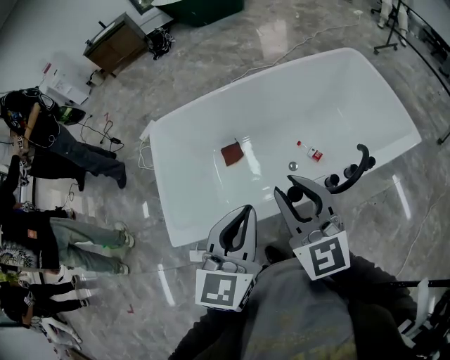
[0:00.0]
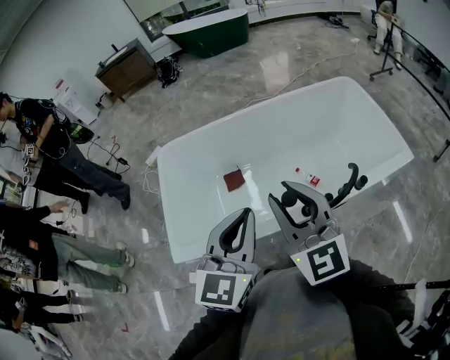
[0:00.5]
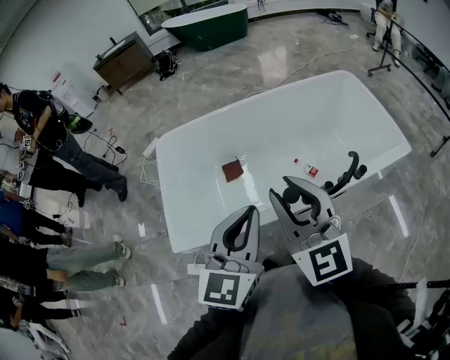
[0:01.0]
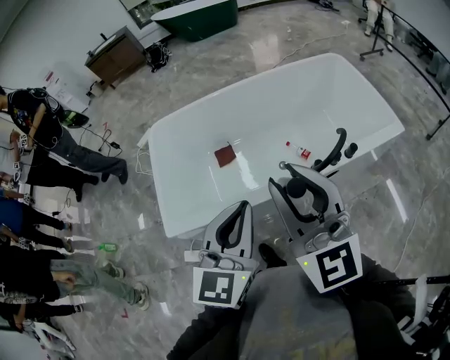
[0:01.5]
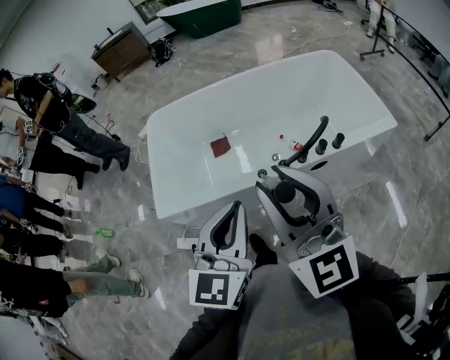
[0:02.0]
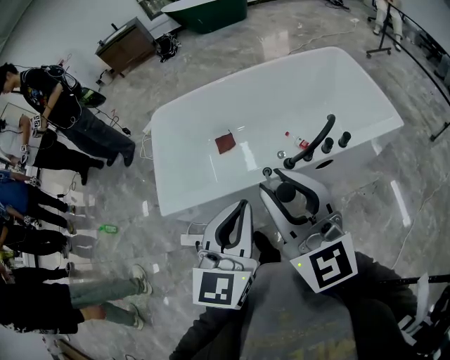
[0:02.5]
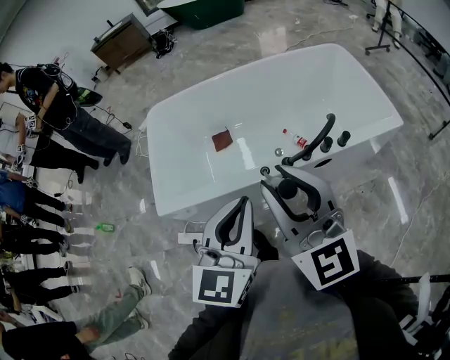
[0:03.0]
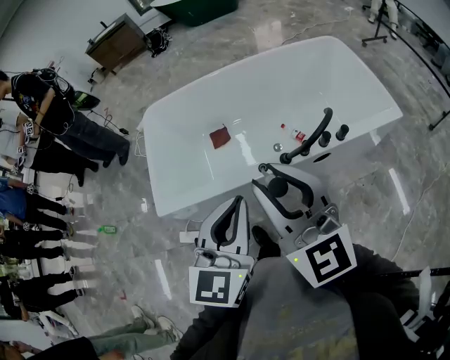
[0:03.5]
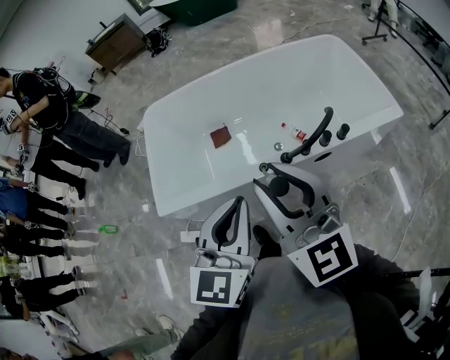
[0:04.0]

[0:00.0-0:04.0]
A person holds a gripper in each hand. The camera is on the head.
0:00.0 to 0:02.0: The right gripper goes about 25 cm backward and upward; the left gripper heads backward, covering approximately 20 cm.
0:02.0 to 0:04.0: The right gripper travels downward by approximately 5 cm.

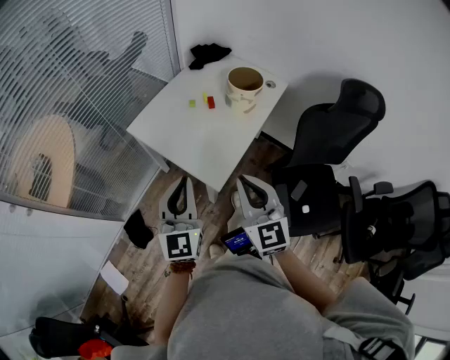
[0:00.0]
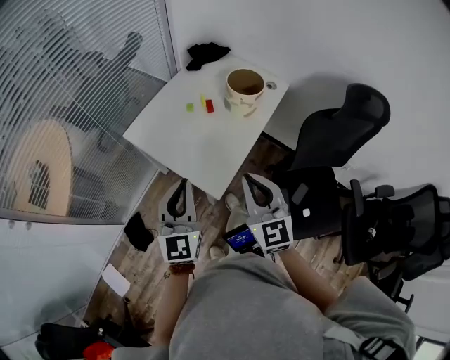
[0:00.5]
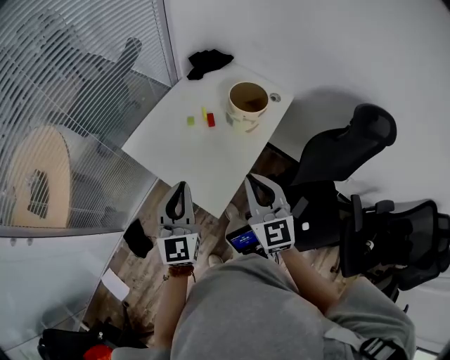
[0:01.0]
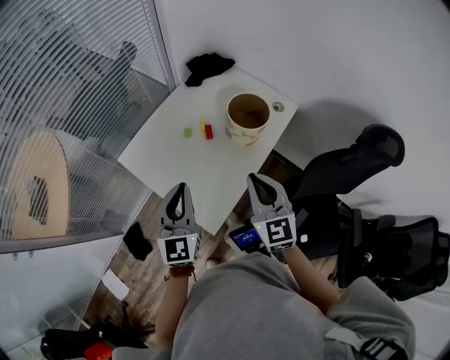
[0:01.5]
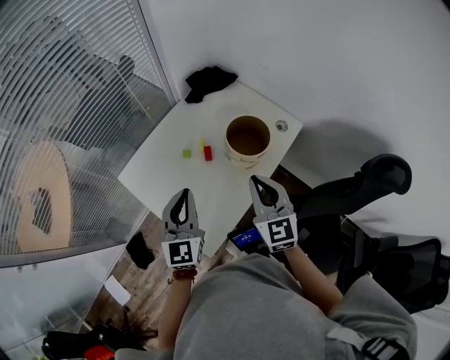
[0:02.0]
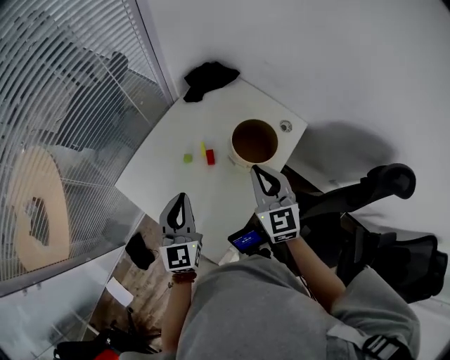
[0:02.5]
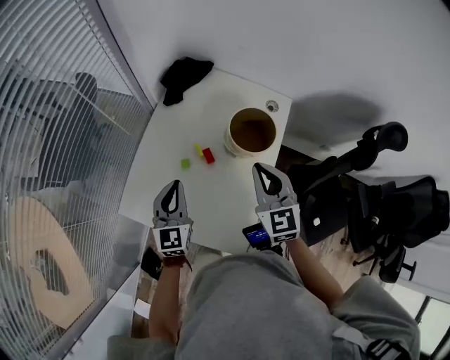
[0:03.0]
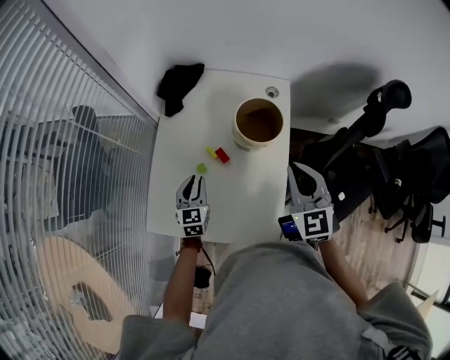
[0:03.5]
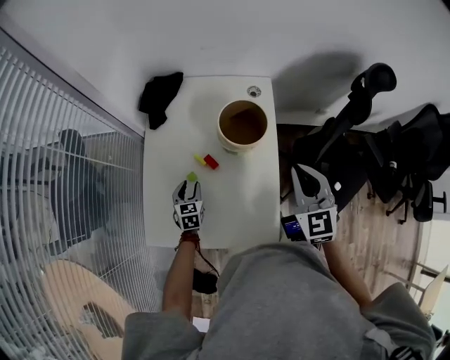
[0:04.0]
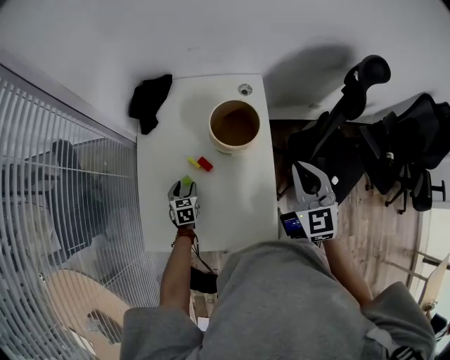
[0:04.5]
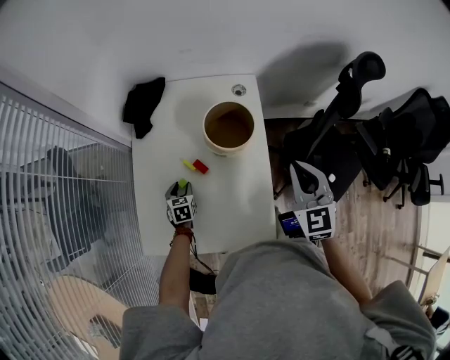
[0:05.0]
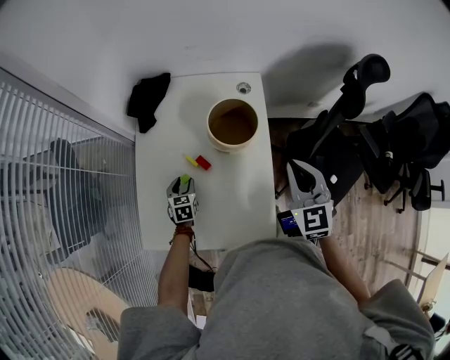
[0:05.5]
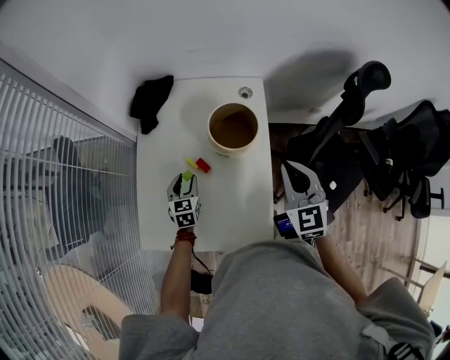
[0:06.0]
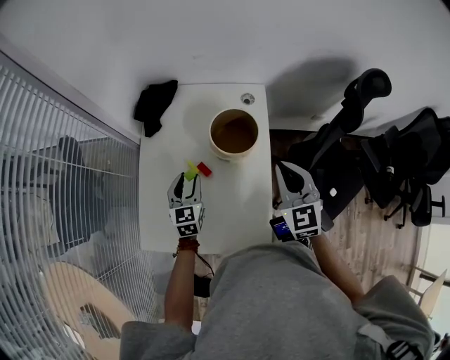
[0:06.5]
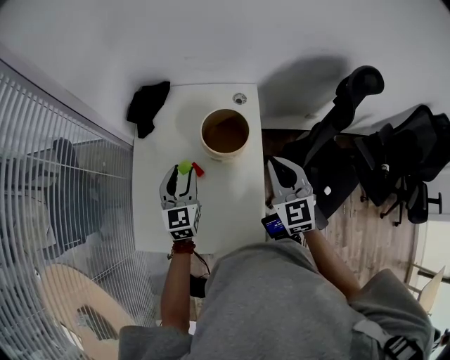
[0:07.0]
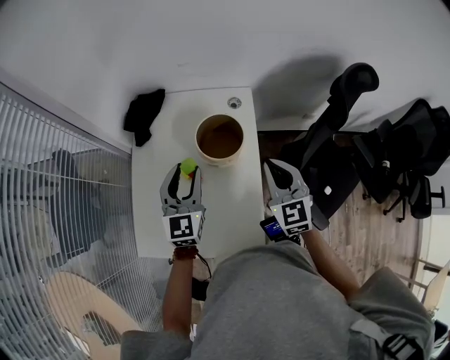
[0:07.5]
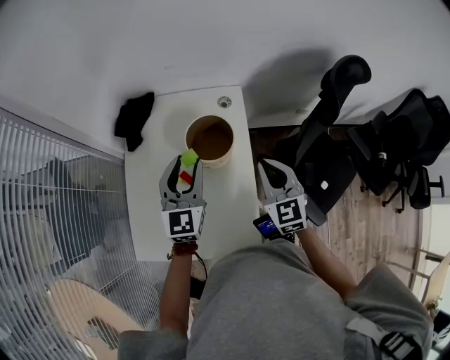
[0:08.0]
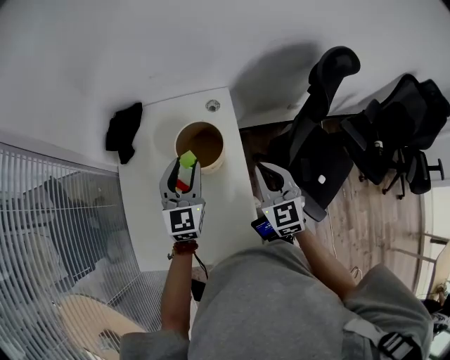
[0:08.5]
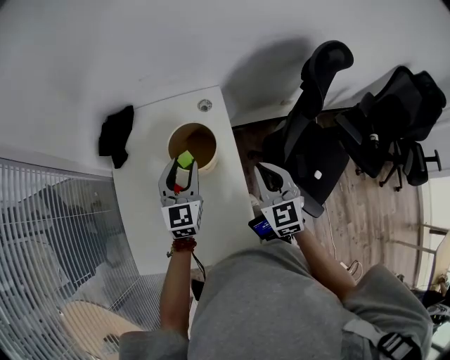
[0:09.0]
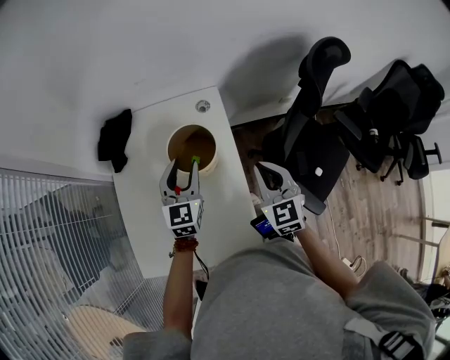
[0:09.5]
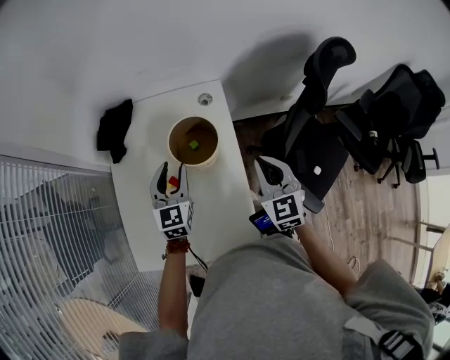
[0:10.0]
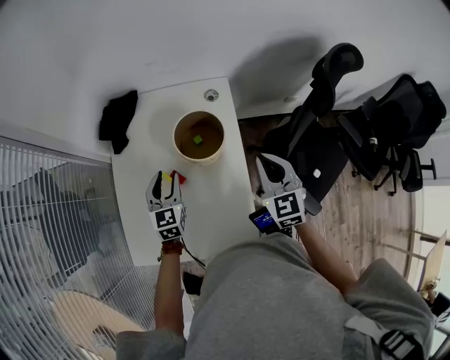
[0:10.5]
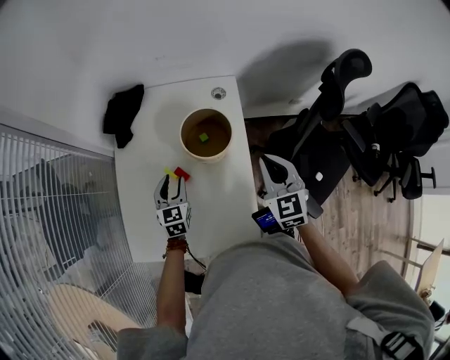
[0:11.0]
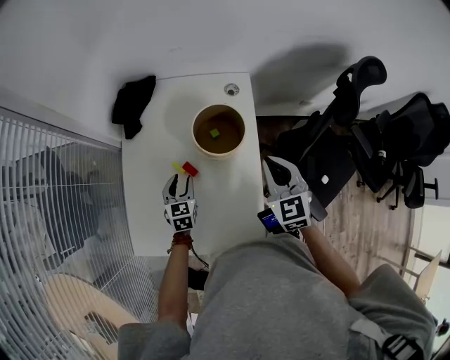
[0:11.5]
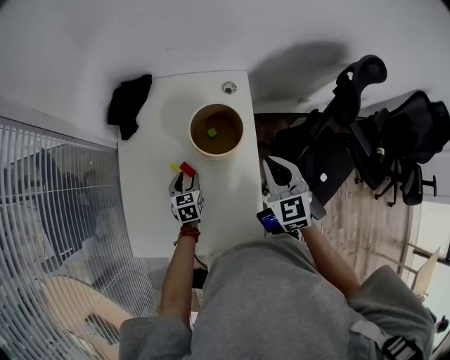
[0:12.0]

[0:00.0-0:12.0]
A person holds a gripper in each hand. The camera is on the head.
0:00.0 to 0:02.0: The left gripper shifts approximately 30 cm forward. Meanwhile the right gripper heads forward and to the right, covering approximately 35 cm.
0:02.0 to 0:04.0: The left gripper moves downward, about 30 cm, angles its fingers downward, by some 40 degrees, and opens up; the right gripper turns by some 40 degrees.
0:04.0 to 0:06.0: The left gripper shifts by roughly 5 cm.
0:06.0 to 0:08.0: The left gripper shifts some 30 cm upward and to the right, and swivels some 30 degrees.
0:08.0 to 0:10.0: The left gripper shifts about 10 cm downward.
0:10.0 to 0:12.0: The right gripper changes place by about 5 cm; the left gripper shifts about 20 cm downward, and turns by some 30 degrees.

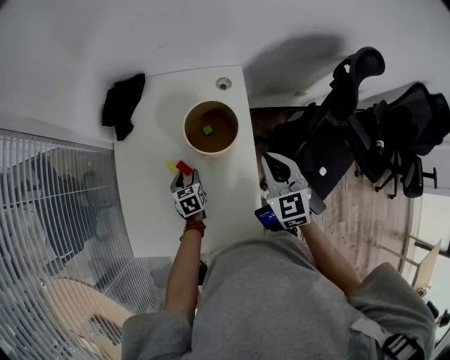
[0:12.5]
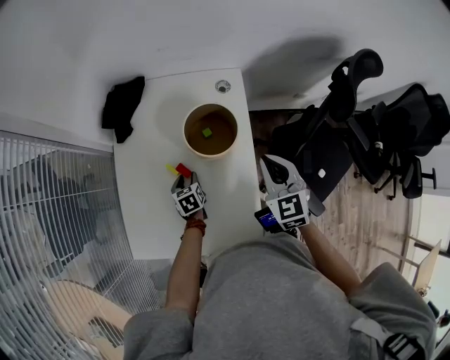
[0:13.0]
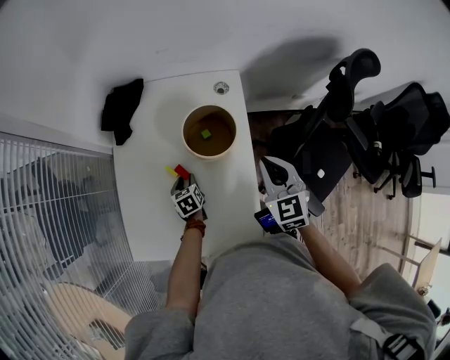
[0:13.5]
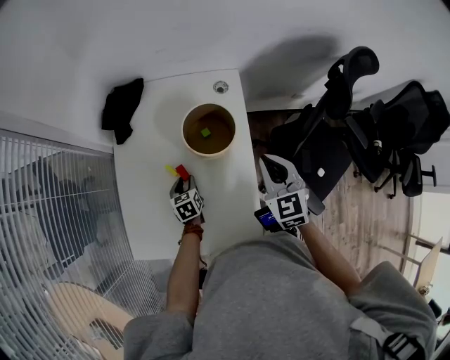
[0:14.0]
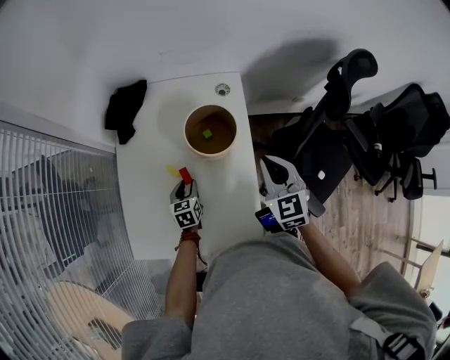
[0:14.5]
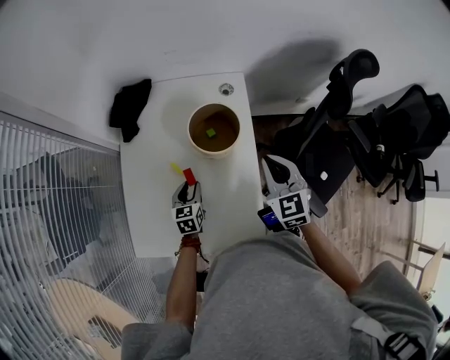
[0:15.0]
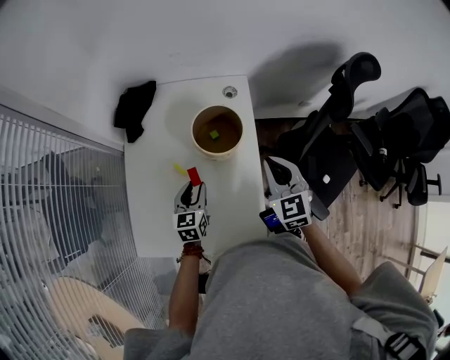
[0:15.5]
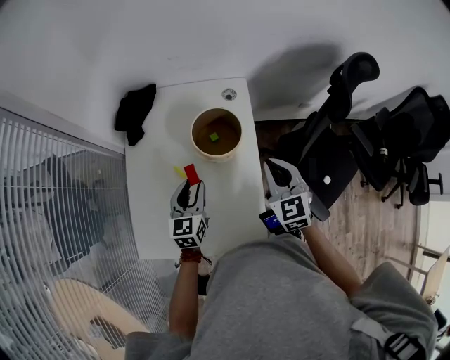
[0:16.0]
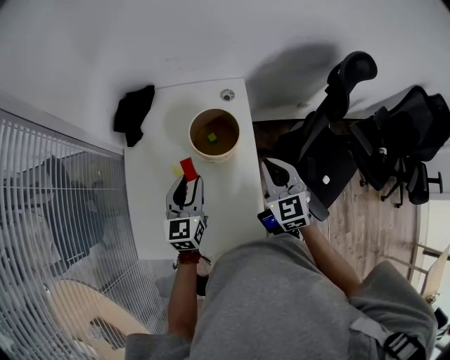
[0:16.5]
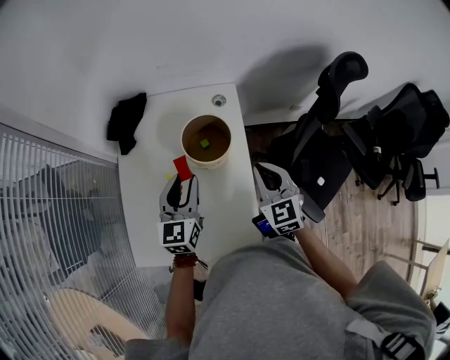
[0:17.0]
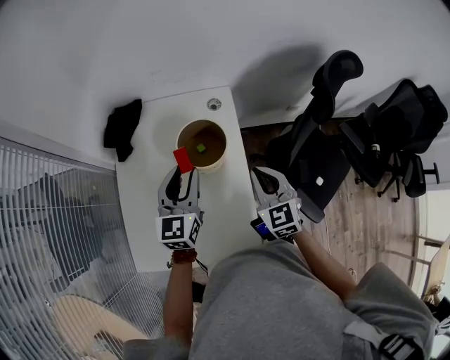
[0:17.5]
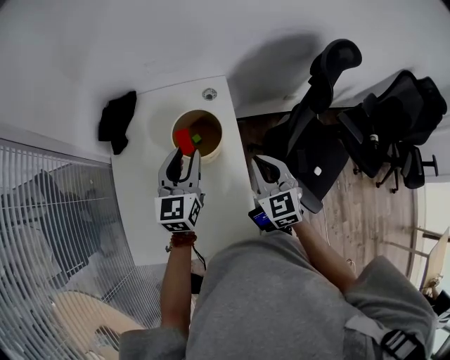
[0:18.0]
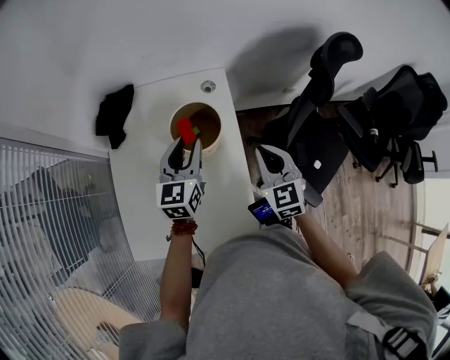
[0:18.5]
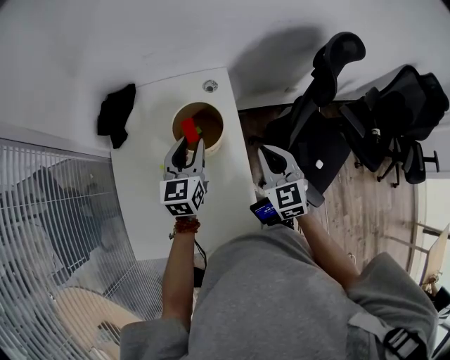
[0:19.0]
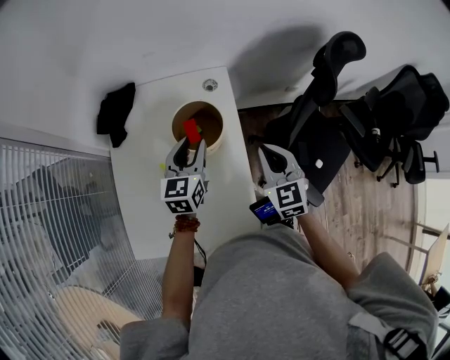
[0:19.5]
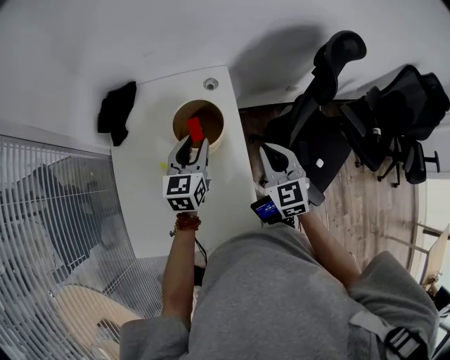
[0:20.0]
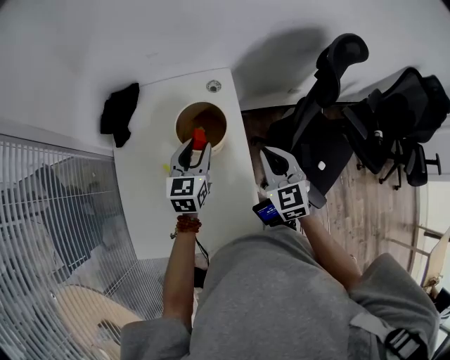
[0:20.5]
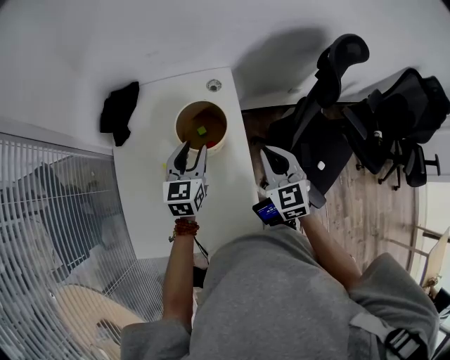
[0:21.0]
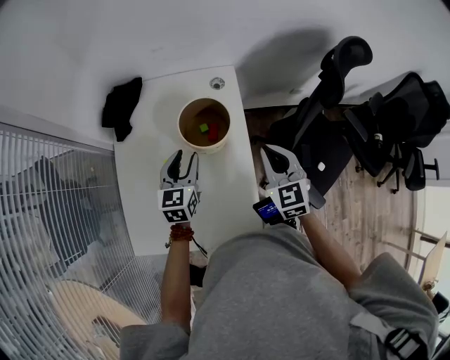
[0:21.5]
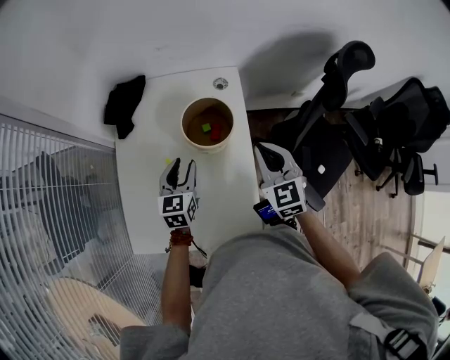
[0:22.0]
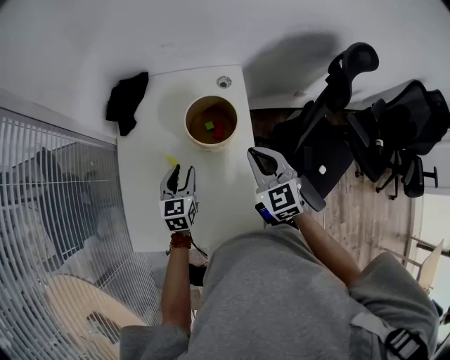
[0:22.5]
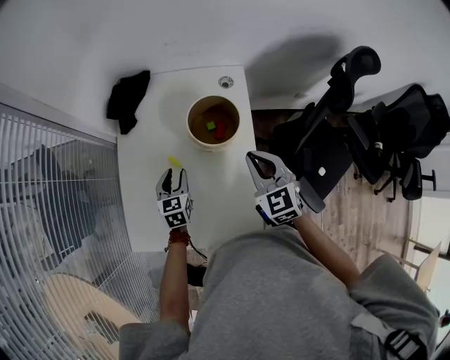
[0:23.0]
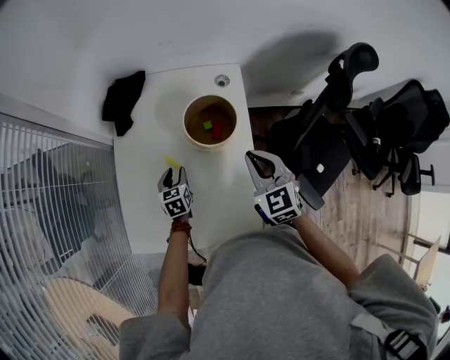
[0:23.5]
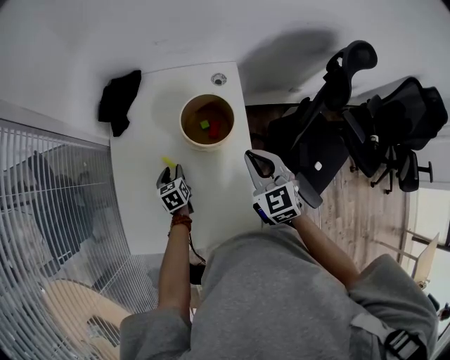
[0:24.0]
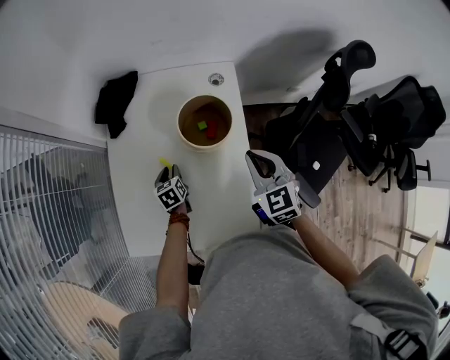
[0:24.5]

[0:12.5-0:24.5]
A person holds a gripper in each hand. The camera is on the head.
0:12.5 to 0:14.5: There are only small adjustments of the grippers.
0:14.5 to 0:16.5: The left gripper heads upward, covering about 20 cm, and turns by roughly 30 degrees.
0:16.5 to 0:18.5: The left gripper is displaced forward and to the right by roughly 10 cm.
0:18.5 to 0:20.5: The grippers stay close to where they were, moving slightly.
0:20.5 to 0:22.5: The left gripper is displaced to the left, downward and backward by roughly 15 cm. Meanwhile the right gripper heads to the left, covering some 5 cm.
0:22.5 to 0:24.5: The left gripper shifts approximately 15 cm downward, and swivels approximately 30 degrees.
